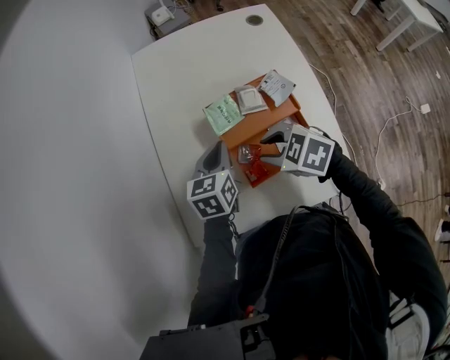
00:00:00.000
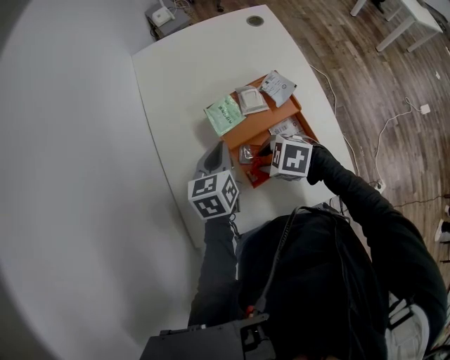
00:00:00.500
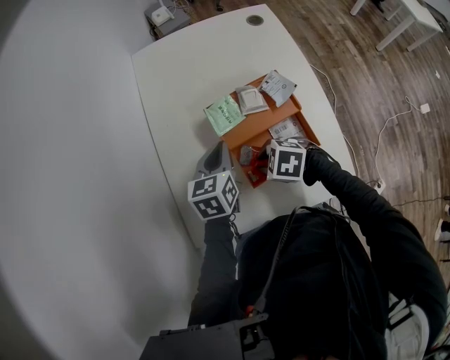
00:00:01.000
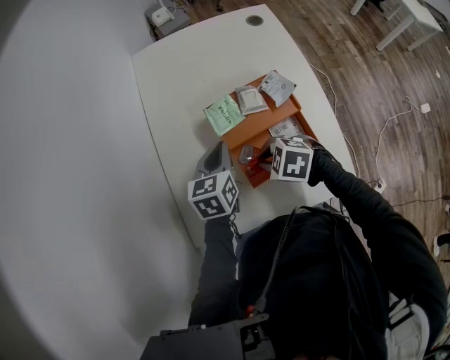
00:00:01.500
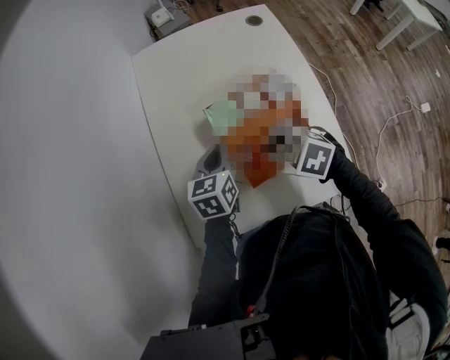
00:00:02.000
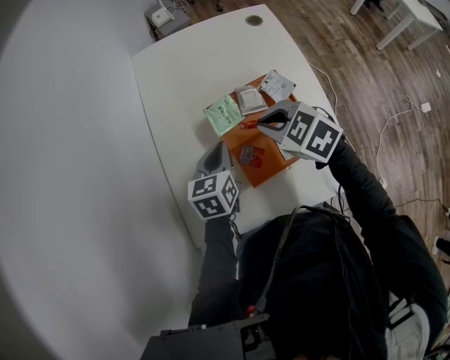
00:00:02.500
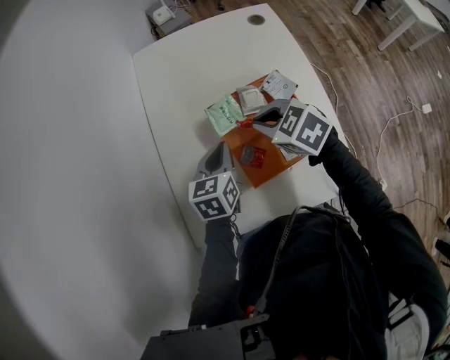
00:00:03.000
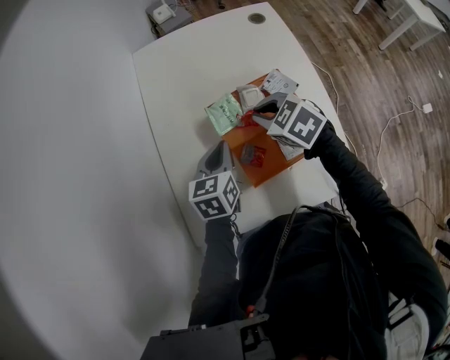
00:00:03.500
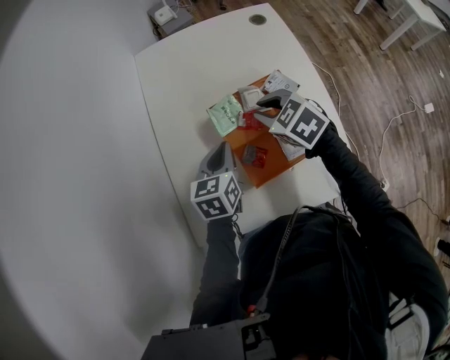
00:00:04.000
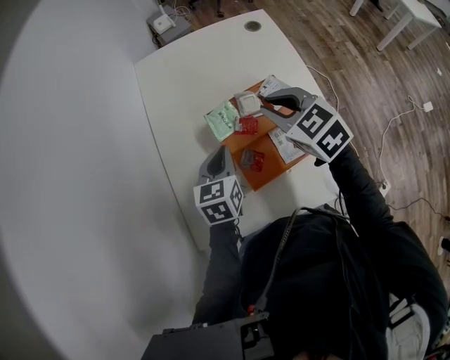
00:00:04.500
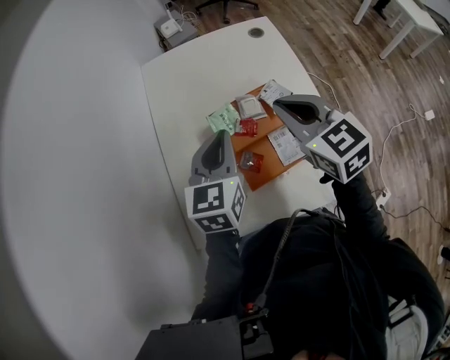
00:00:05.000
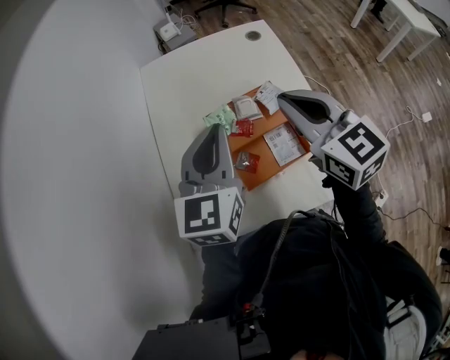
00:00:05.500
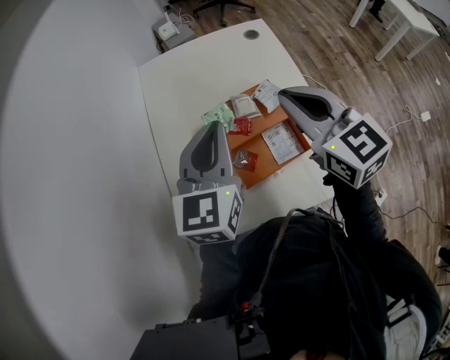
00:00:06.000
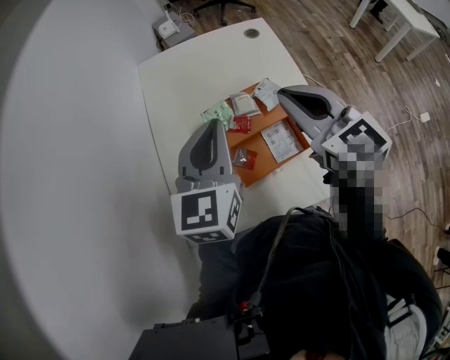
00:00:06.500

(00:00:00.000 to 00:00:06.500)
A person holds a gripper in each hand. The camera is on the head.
00:00:00.000 - 00:00:02.000: The right gripper moves approximately 10 cm downward and comes back, and closes up.
00:00:02.000 - 00:00:04.500: The right gripper shifts roughly 15 cm upward, forward and to the right, and changes its angle by approximately 30 degrees.
00:00:04.500 - 00:00:06.500: The right gripper travels upward by approximately 15 cm, and swivels approximately 20 degrees; the left gripper moves upward, roughly 20 cm, and swivels about 20 degrees.

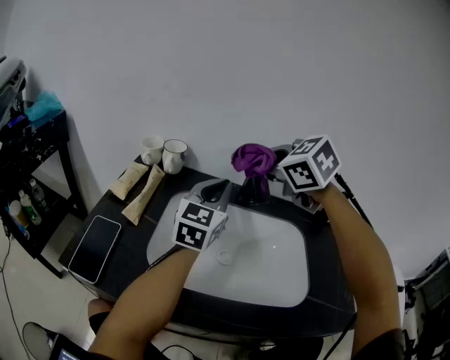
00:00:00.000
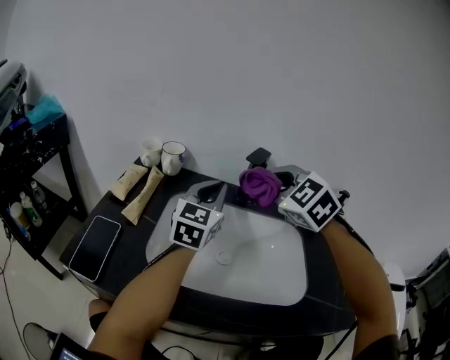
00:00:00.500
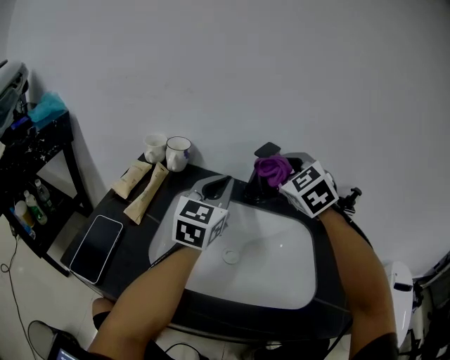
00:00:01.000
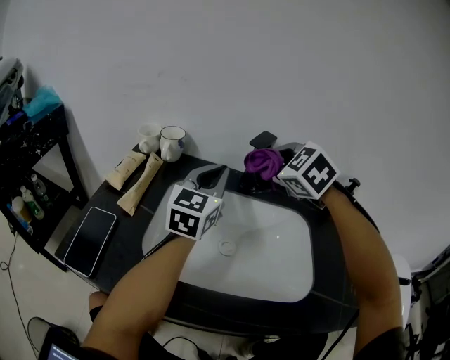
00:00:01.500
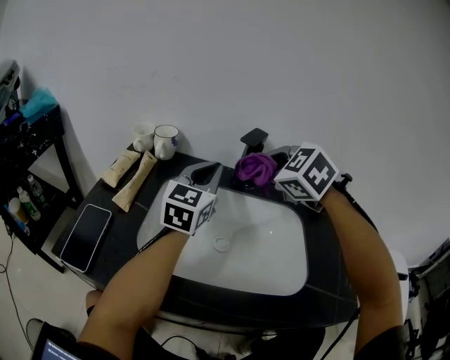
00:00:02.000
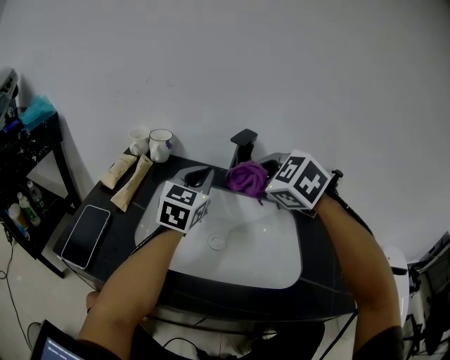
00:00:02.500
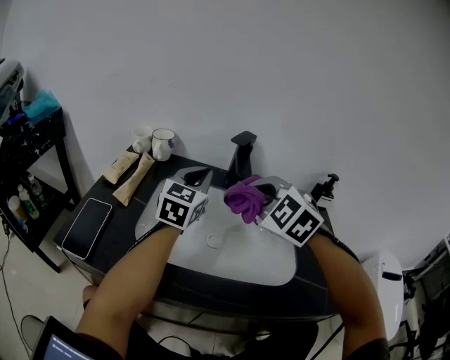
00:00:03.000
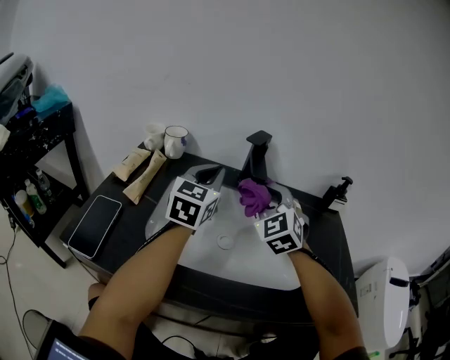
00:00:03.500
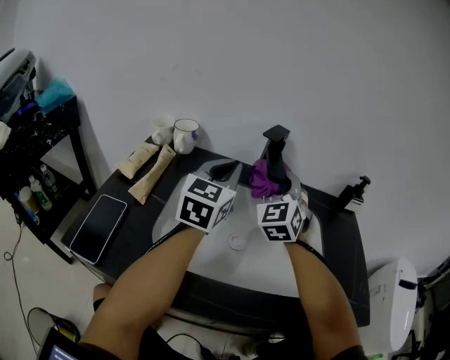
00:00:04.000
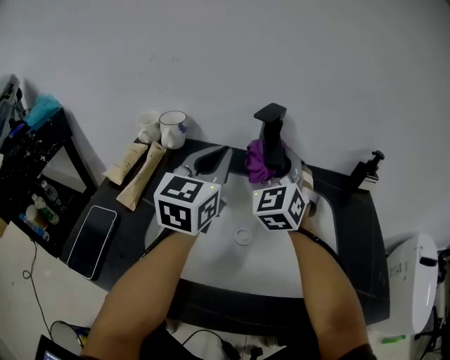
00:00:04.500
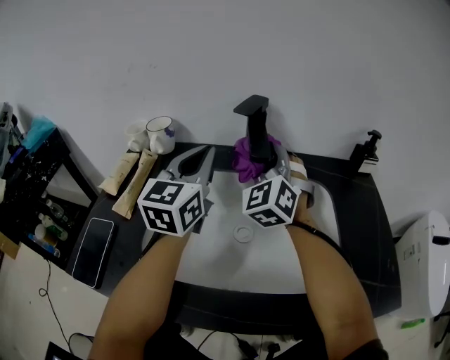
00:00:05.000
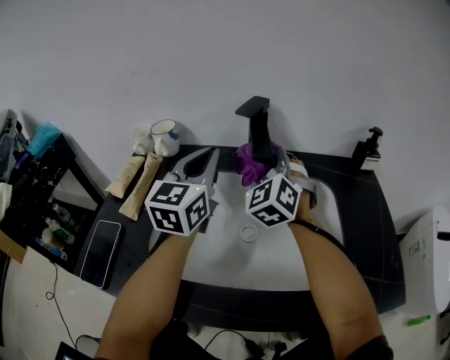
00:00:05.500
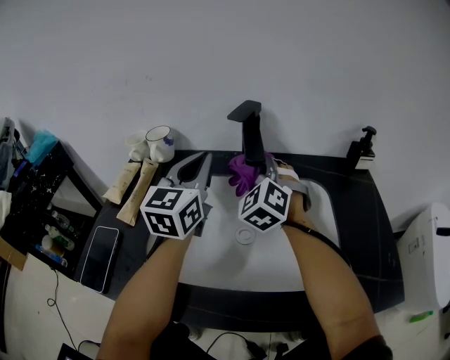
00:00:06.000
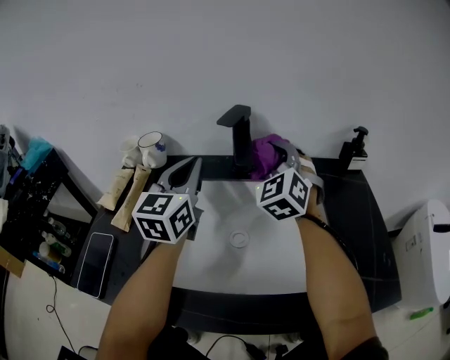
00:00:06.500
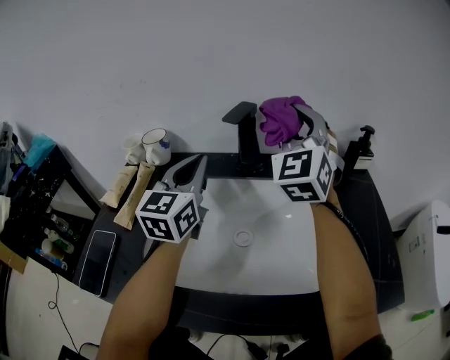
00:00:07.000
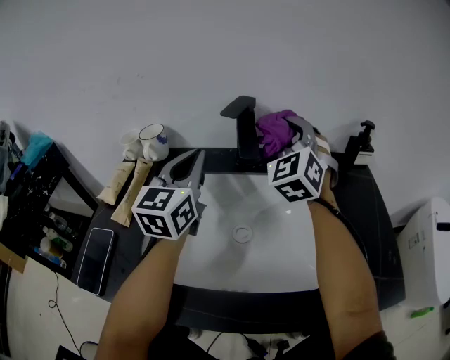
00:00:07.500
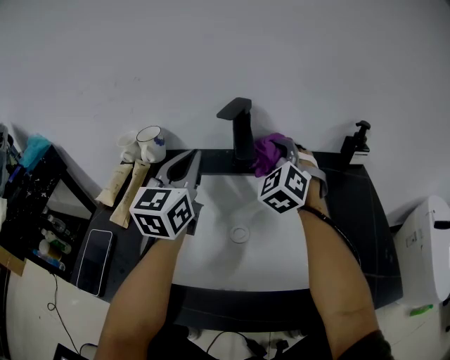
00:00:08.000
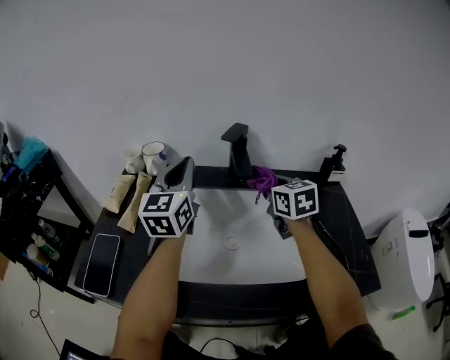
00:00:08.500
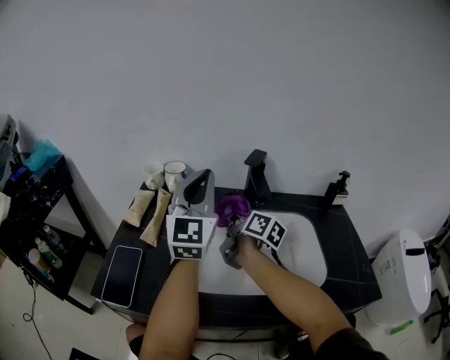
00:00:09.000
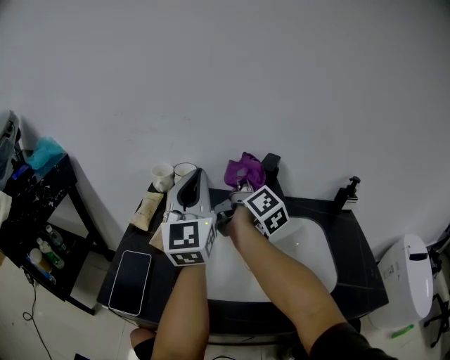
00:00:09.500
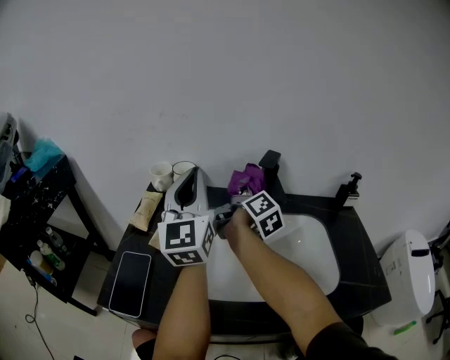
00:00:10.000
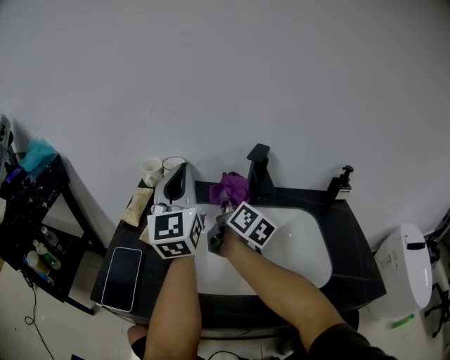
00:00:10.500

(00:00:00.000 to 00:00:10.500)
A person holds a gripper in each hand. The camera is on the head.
00:00:00.000 - 00:00:02.000: The right gripper travels downward by some 5 cm.
00:00:02.000 - 00:00:04.000: The right gripper shifts roughly 5 cm downward, moves roughly 10 cm backward and comes back, and tips its fingers upward by approximately 40 degrees.
00:00:04.000 - 00:00:06.500: The right gripper ends up some 5 cm from where it was.
00:00:06.500 - 00:00:08.500: The right gripper moves some 10 cm upward and comes back, and rotates around the line of its fingers by roughly 50 degrees, clockwise from behind.
00:00:08.500 - 00:00:10.500: The right gripper moves to the left, approximately 15 cm, and twists approximately 50 degrees clockwise, seen from behind. Meanwhile the left gripper travels to the left by approximately 10 cm.

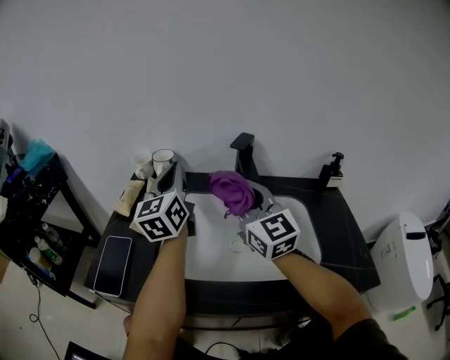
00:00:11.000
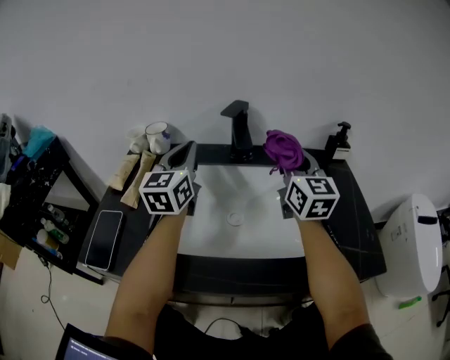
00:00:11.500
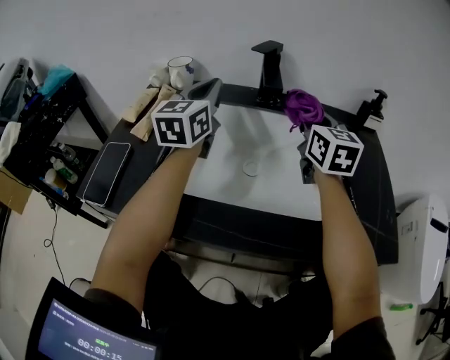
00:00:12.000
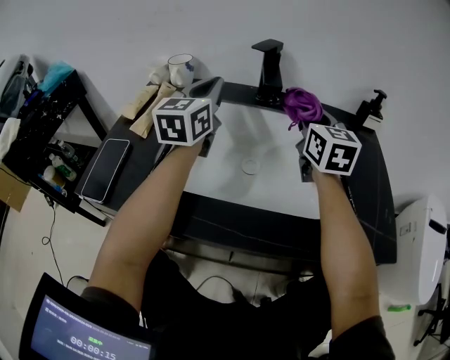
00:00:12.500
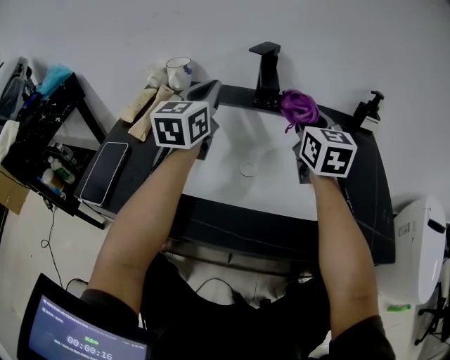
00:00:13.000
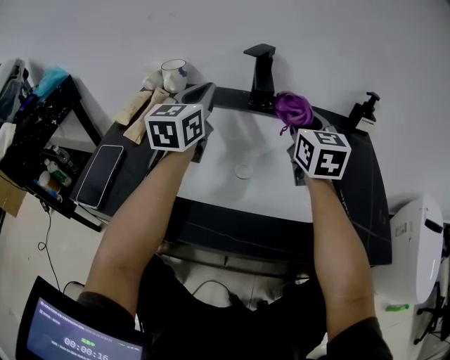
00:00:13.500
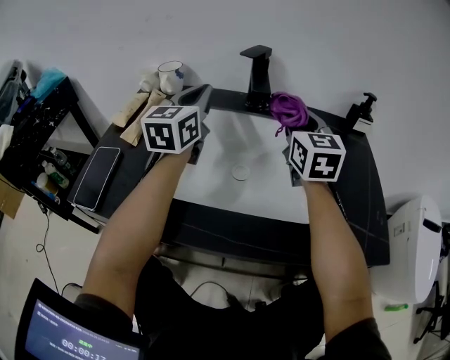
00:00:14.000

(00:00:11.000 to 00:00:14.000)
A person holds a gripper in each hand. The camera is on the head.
00:00:11.000 - 00:00:12.500: The right gripper travels to the right and downward by roughly 15 cm, and rotates roughly 20 degrees, while the left gripper heads to the right, covering some 10 cm.
00:00:12.500 - 00:00:14.000: There are only small adjustments of the grippers.

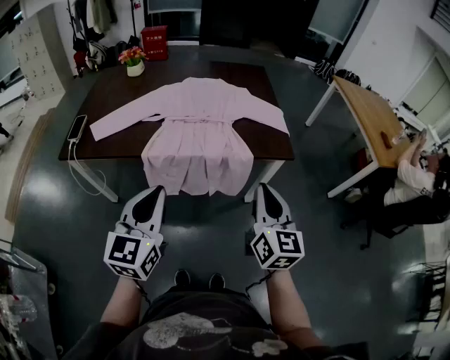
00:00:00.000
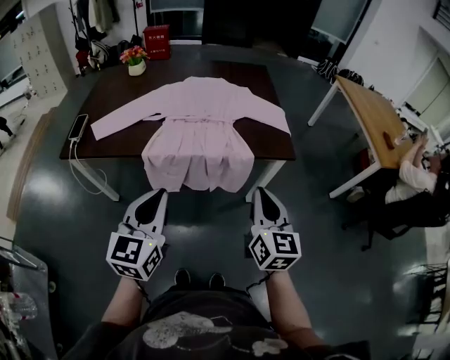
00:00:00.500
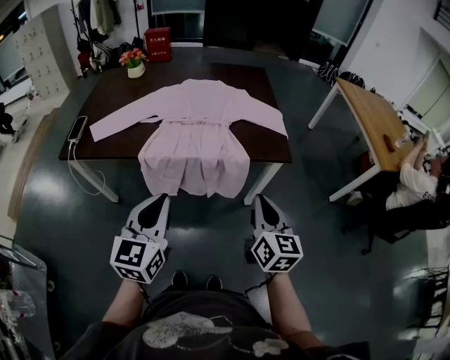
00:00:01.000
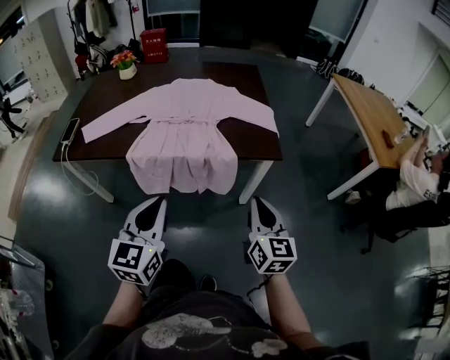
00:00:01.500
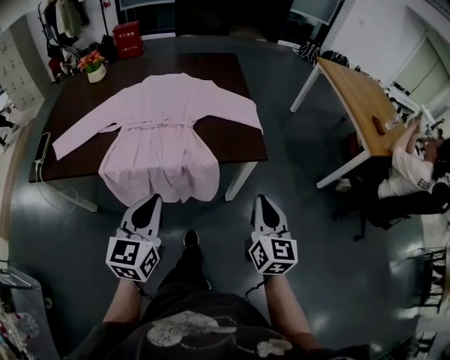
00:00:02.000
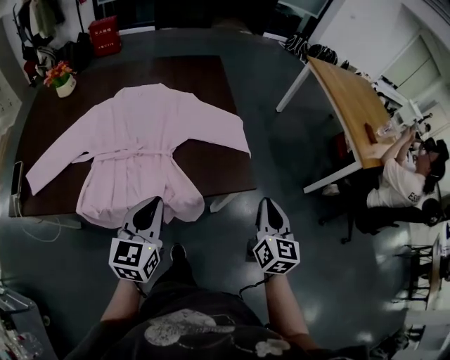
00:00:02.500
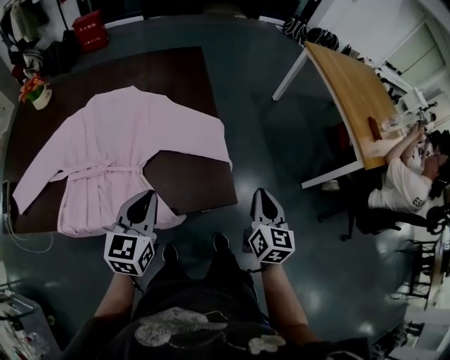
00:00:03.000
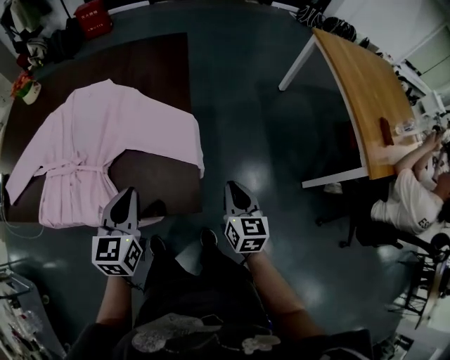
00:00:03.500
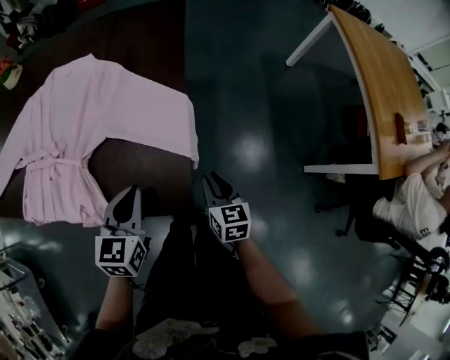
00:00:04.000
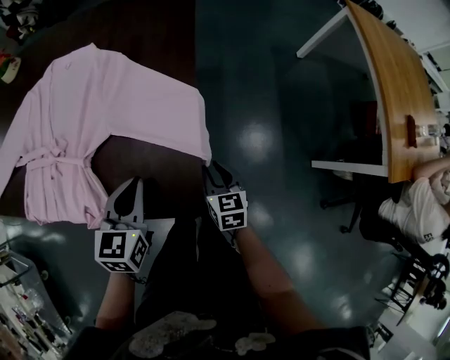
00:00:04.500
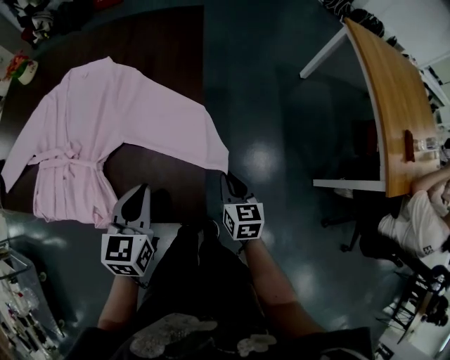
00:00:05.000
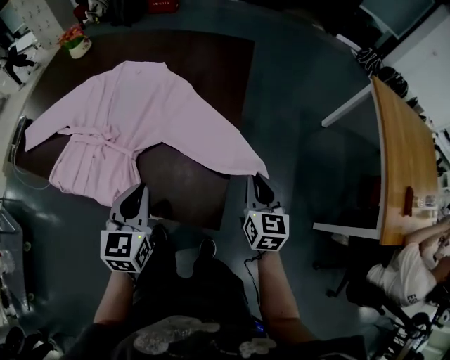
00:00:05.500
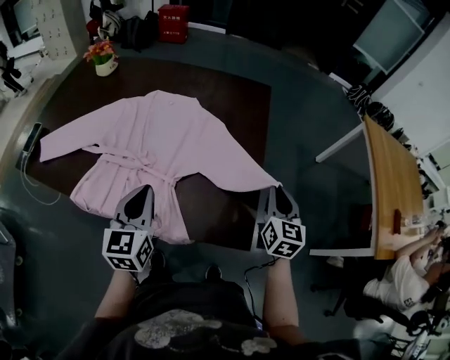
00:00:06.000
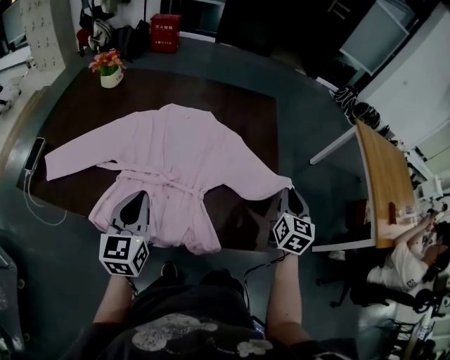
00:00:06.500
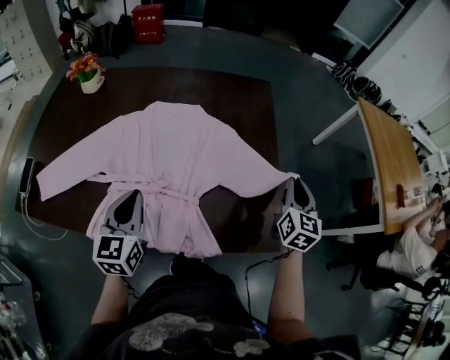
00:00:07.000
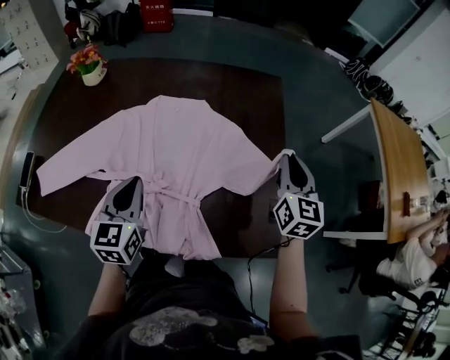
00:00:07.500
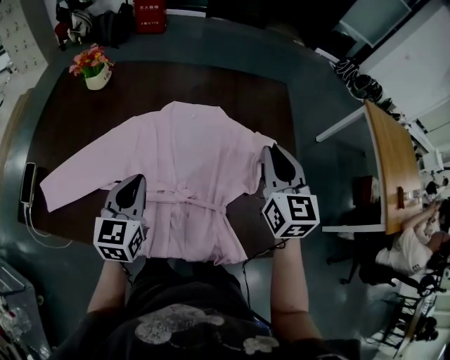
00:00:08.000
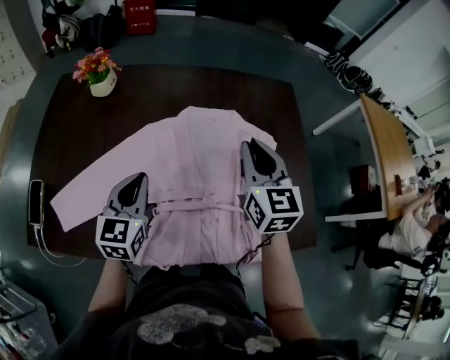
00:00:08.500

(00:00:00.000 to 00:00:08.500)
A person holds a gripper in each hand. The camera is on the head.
00:00:00.000 - 00:00:02.000: The right gripper travels to the right, downward and forward by about 20 cm. Meanwhile the left gripper travels to the right, forward and downward by some 20 cm.
00:00:02.000 - 00:00:04.000: The right gripper shifts approximately 40 cm forward and downward, and swivels some 30 degrees; the left gripper moves forward, to the right and downward, approximately 40 cm.
00:00:04.000 - 00:00:06.500: The right gripper shifts approximately 25 cm upward, to the left and forward, and changes its angle by about 30 degrees; the left gripper shifts about 35 cm to the left, and changes its angle by approximately 20 degrees.
00:00:06.500 - 00:00:08.500: The left gripper travels to the left and forward by approximately 25 cm, while the right gripper travels to the left by about 35 cm.
